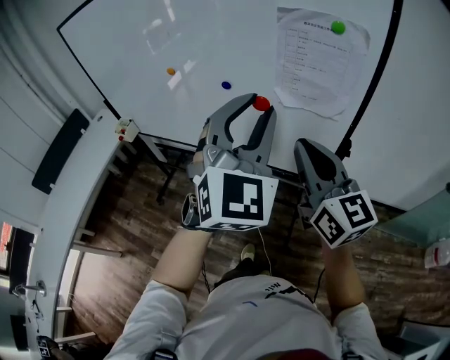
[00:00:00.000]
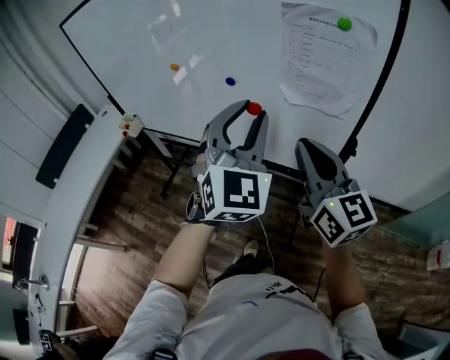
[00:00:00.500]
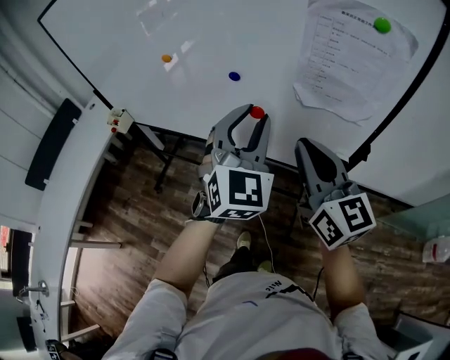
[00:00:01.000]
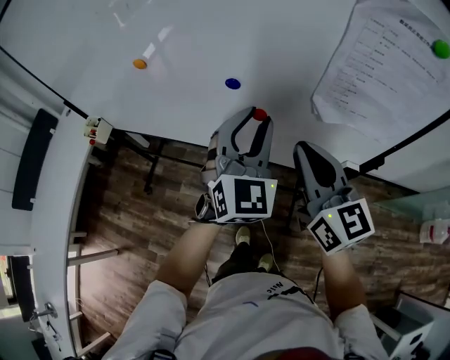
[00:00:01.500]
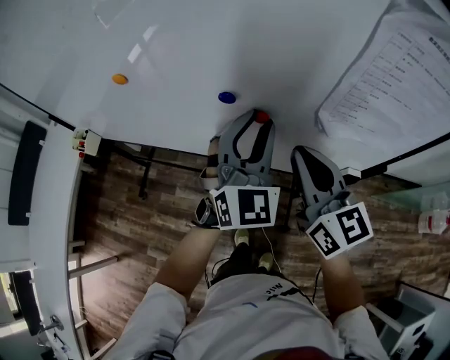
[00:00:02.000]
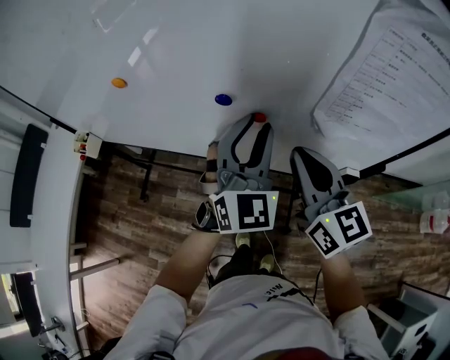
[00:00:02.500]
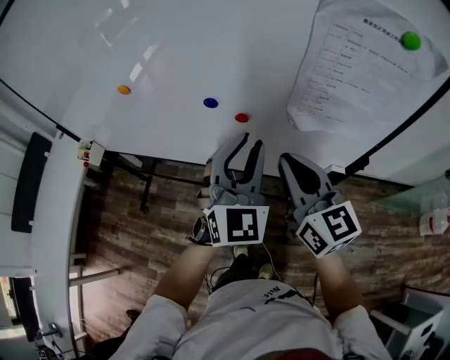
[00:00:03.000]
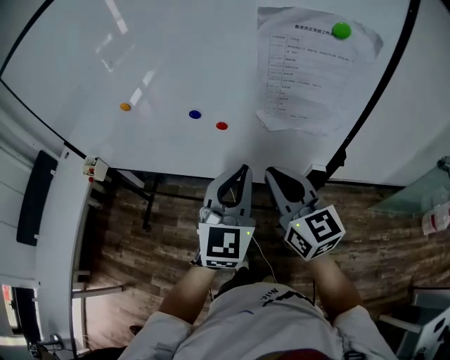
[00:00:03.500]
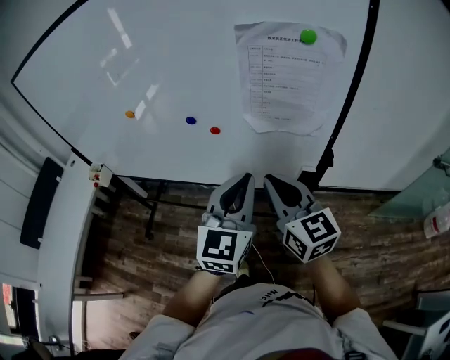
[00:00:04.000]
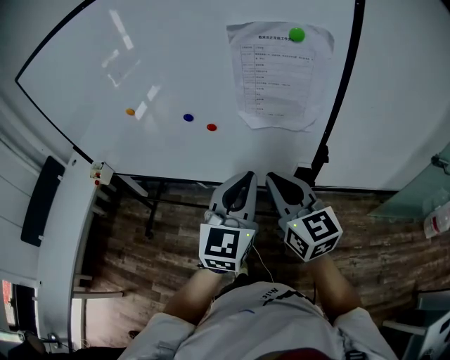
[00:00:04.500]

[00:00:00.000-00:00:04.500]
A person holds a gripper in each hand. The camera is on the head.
00:00:00.000 to 00:00:02.000: The grippers both shift forward and downward by roughly 25 cm.
00:00:02.000 to 00:00:04.500: Both grippers travel together backward and to the right, some 20 cm. The left gripper changes its angle by roughly 30 degrees, and closes its fingers.

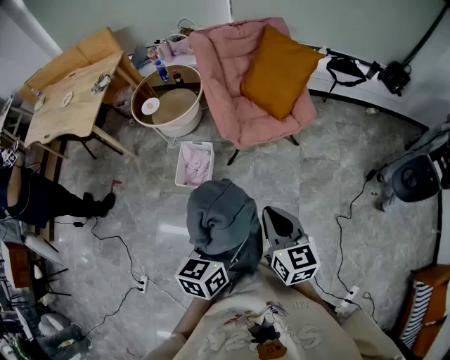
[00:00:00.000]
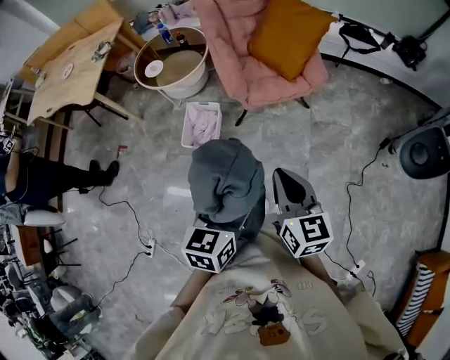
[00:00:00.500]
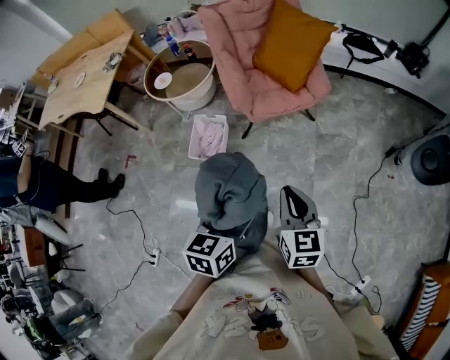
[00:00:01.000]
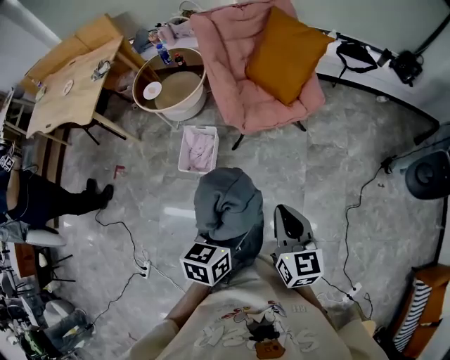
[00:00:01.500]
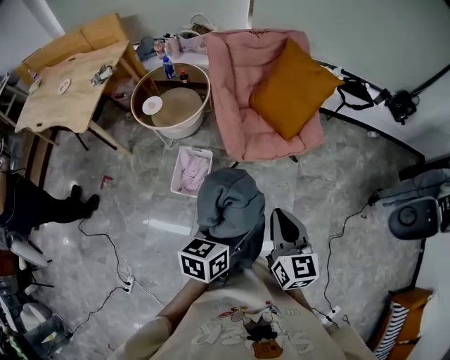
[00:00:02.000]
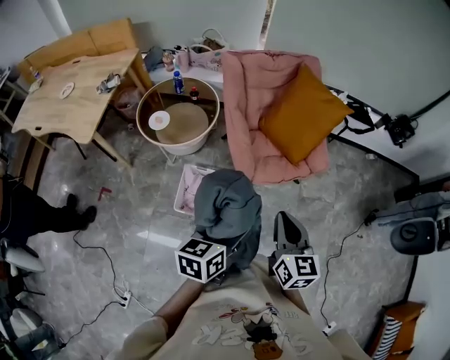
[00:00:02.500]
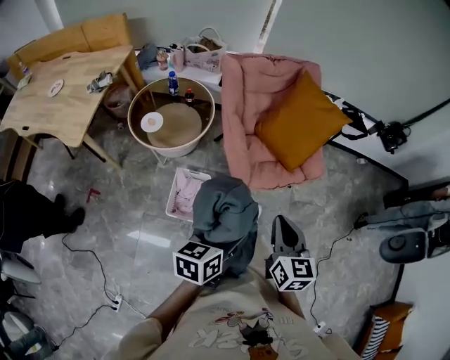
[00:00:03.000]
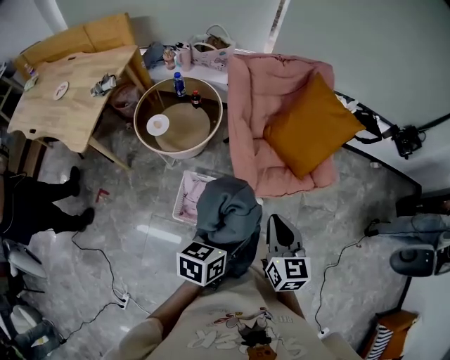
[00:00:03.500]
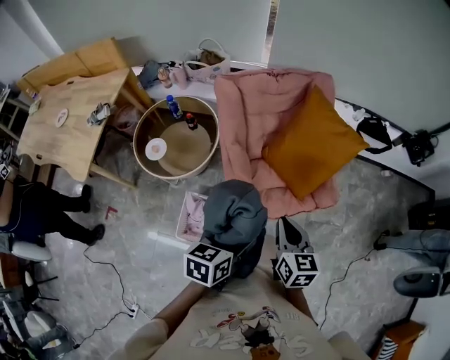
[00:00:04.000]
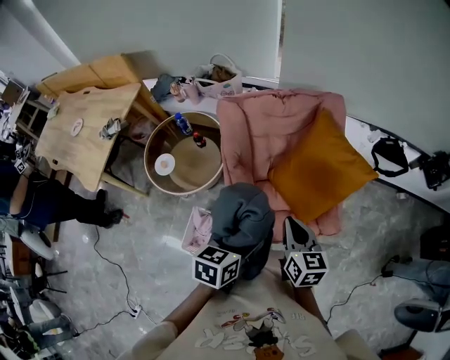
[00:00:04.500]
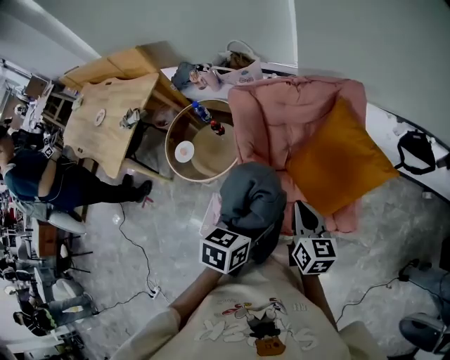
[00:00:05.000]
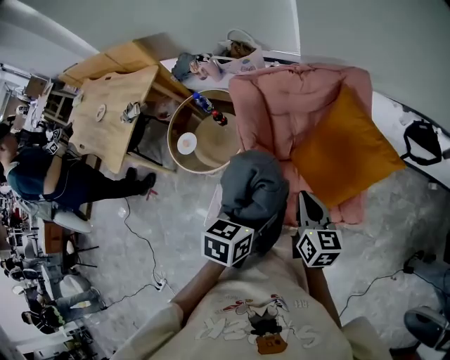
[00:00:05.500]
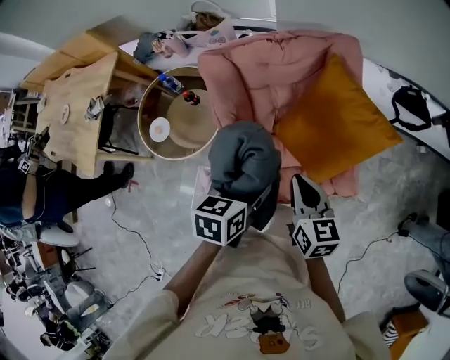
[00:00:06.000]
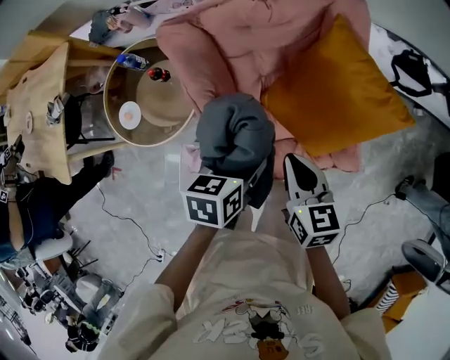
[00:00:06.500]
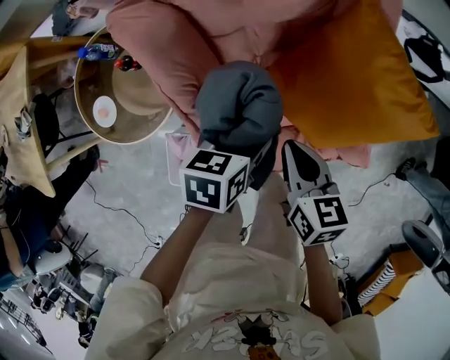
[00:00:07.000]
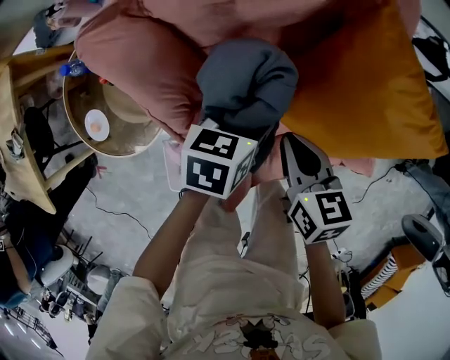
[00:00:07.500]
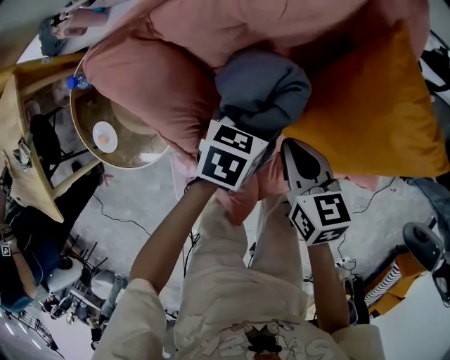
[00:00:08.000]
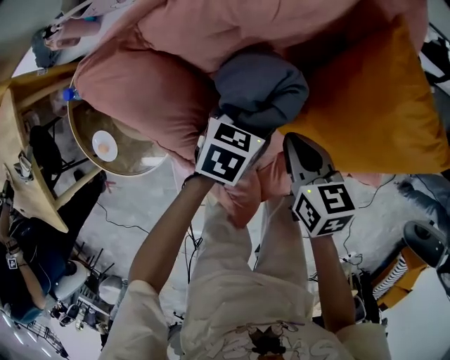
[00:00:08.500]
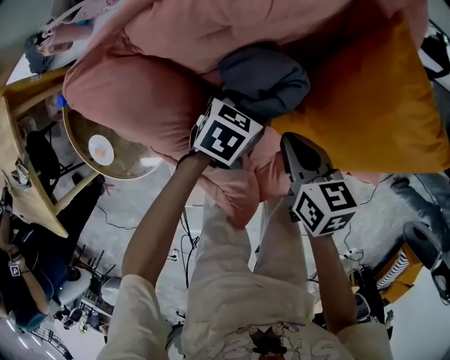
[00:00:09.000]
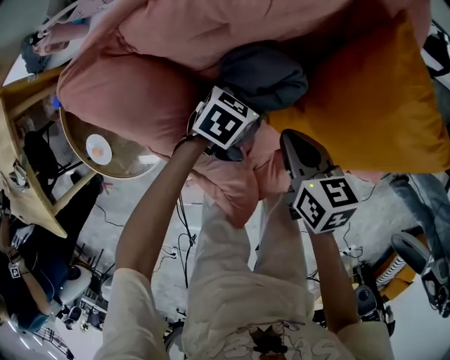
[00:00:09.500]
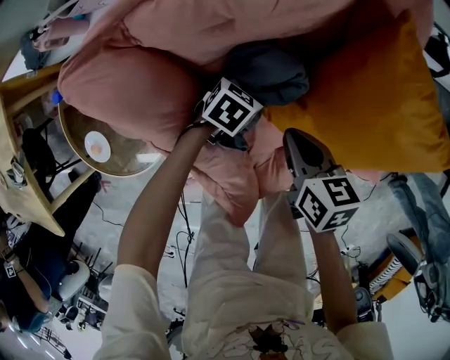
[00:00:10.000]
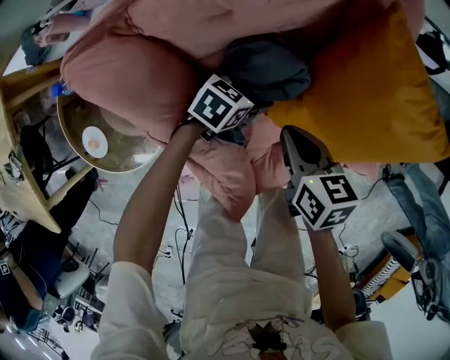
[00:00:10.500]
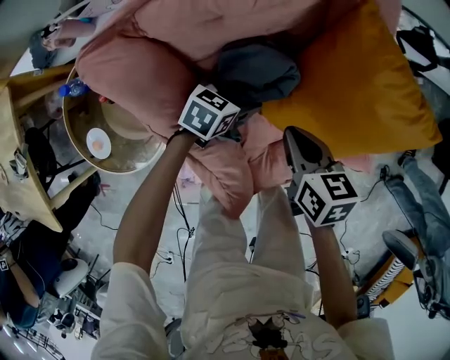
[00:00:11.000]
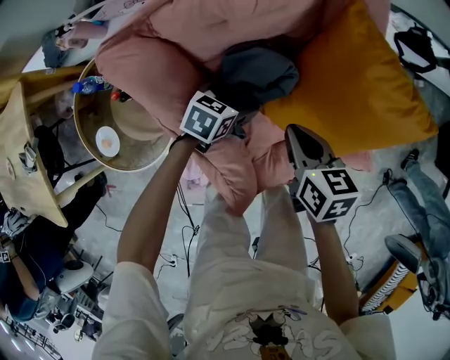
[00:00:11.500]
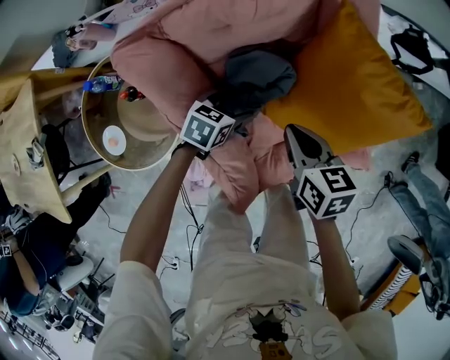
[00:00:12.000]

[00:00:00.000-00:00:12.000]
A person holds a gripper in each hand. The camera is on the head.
00:00:00.000 to 00:00:02.000: Both grippers travel together forward, some 15 cm.
00:00:02.000 to 00:00:04.000: Both grippers travel together forward, approximately 30 cm.
00:00:04.000 to 00:00:06.000: Both grippers move forward, roughly 20 cm.
00:00:06.000 to 00:00:08.000: The two grippers go some 35 cm downward and forward. The left gripper rotates roughly 30 degrees.
00:00:08.000 to 00:00:10.000: The left gripper shifts some 10 cm downward.
00:00:10.000 to 00:00:12.000: The right gripper heads upward, covering roughly 10 cm. Meanwhile the left gripper goes approximately 15 cm upward and backward.

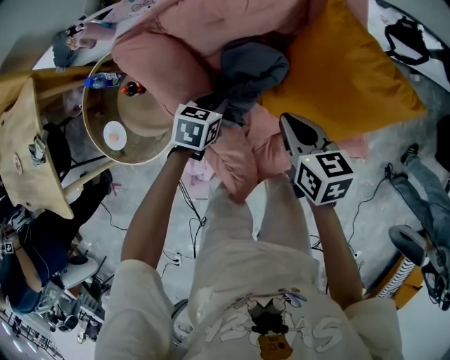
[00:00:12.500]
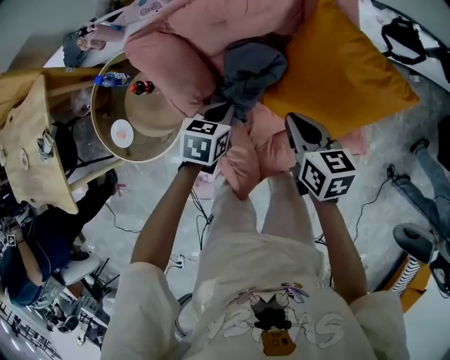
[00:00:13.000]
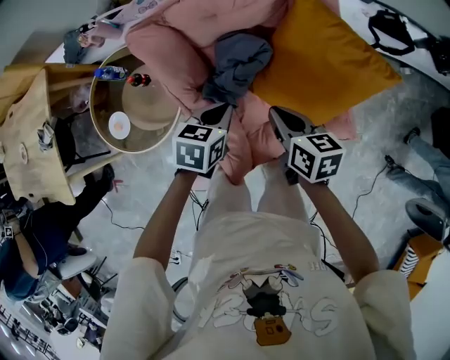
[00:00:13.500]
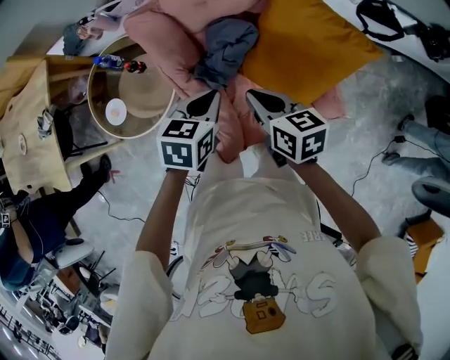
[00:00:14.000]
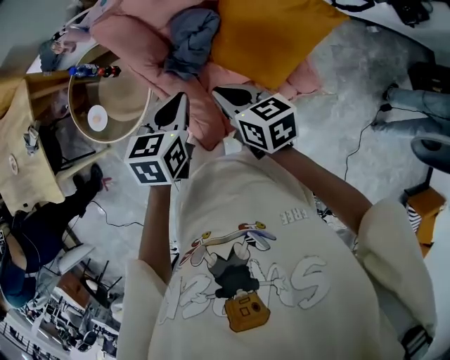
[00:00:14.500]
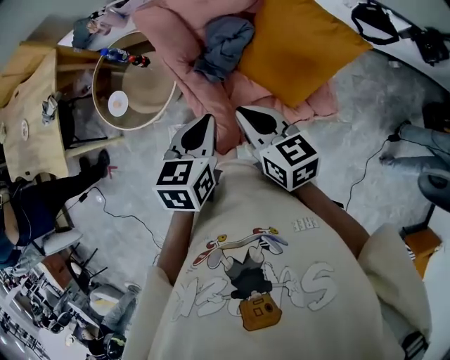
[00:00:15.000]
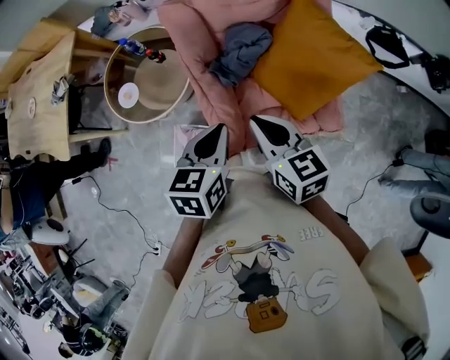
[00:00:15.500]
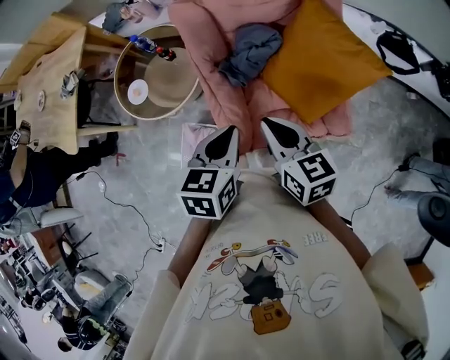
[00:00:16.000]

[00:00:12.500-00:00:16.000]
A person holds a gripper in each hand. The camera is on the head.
00:00:12.500 to 00:00:14.500: The right gripper shifts roughly 20 cm backward and upward. The left gripper travels upward and backward by some 35 cm.
00:00:14.500 to 00:00:16.000: The left gripper moves backward, approximately 10 cm, while the right gripper is displaced upward and backward by about 10 cm.

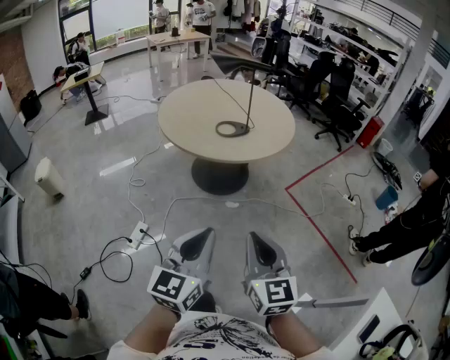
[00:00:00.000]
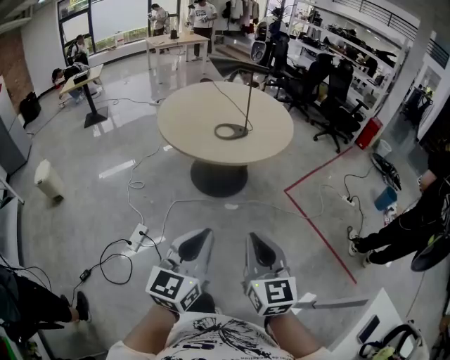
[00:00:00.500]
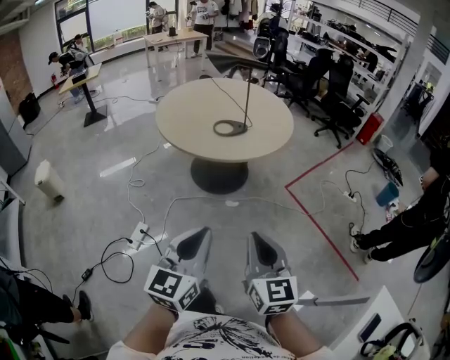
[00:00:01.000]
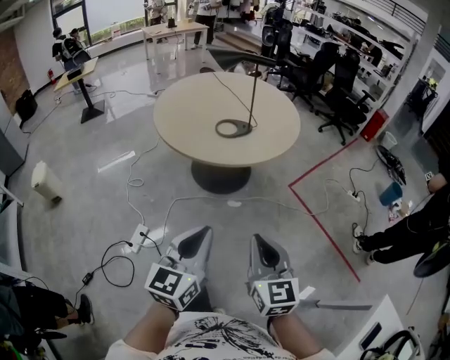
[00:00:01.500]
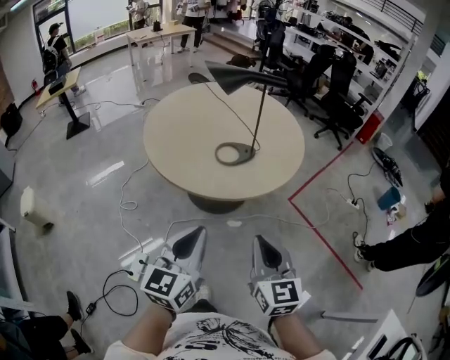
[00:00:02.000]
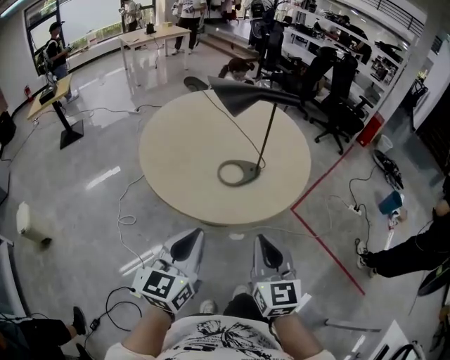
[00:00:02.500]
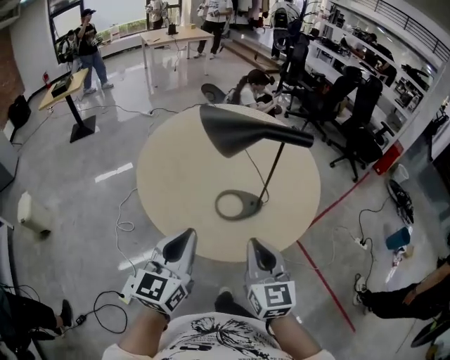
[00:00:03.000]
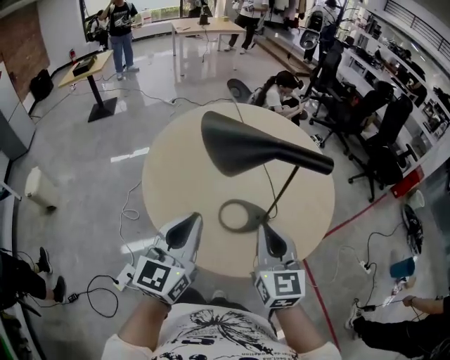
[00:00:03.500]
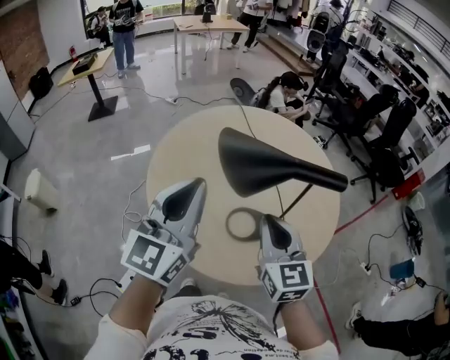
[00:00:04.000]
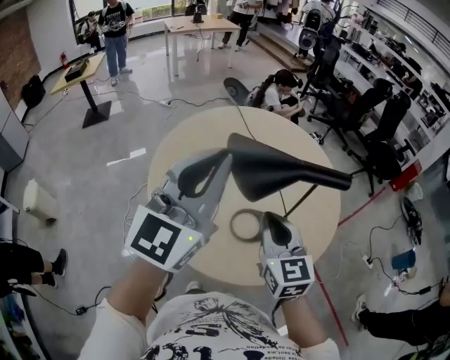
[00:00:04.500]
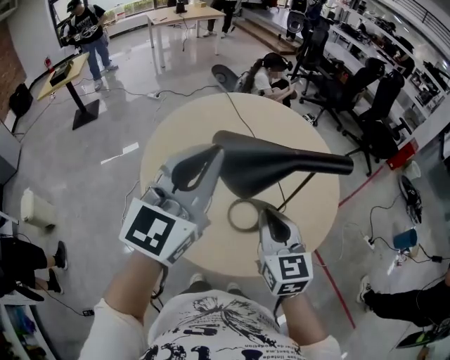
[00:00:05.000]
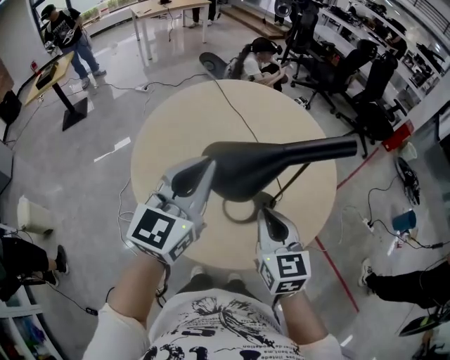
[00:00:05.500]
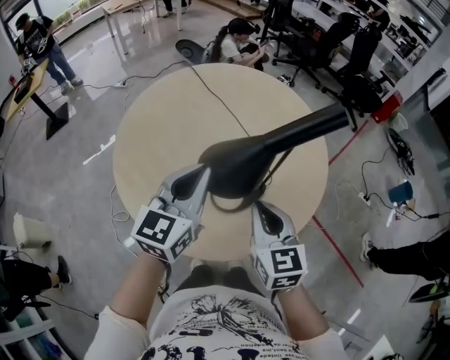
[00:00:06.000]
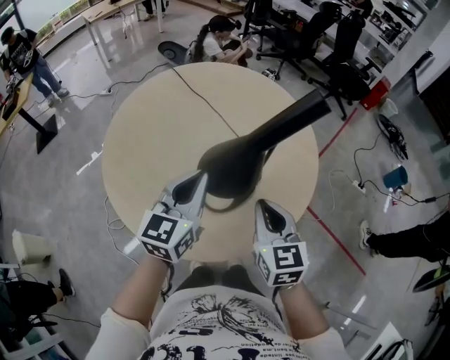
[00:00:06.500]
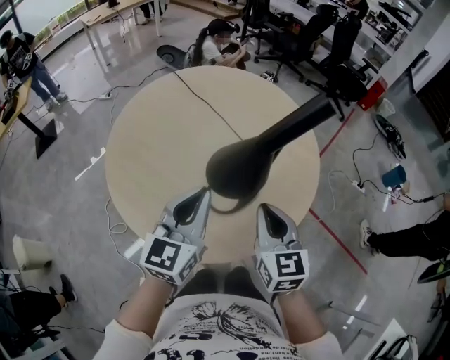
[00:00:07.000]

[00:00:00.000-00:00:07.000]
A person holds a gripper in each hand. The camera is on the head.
00:00:00.000 to 00:00:02.000: The left gripper is displaced forward and to the left by about 25 cm; the right gripper goes roughly 20 cm forward.
00:00:02.000 to 00:00:03.500: The two grippers go about 30 cm forward.
00:00:03.500 to 00:00:05.000: The left gripper travels upward and forward by roughly 15 cm, and swivels some 20 degrees; the right gripper goes approximately 5 cm to the left.
00:00:05.000 to 00:00:07.000: The left gripper travels downward by about 15 cm, and rotates approximately 20 degrees, while the right gripper travels to the right by about 5 cm.
